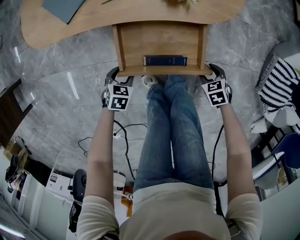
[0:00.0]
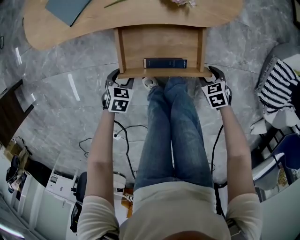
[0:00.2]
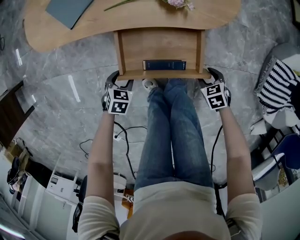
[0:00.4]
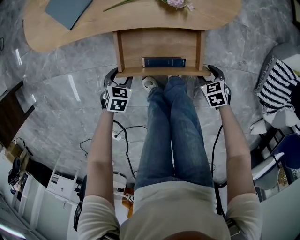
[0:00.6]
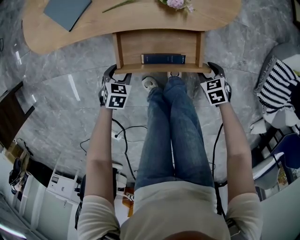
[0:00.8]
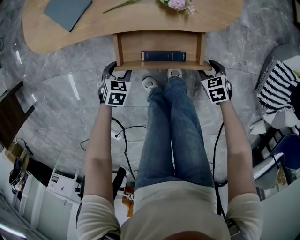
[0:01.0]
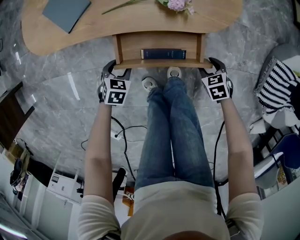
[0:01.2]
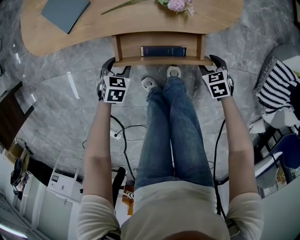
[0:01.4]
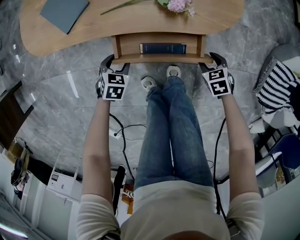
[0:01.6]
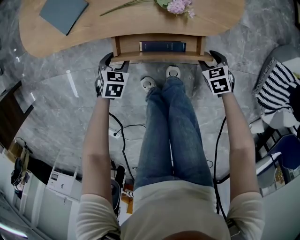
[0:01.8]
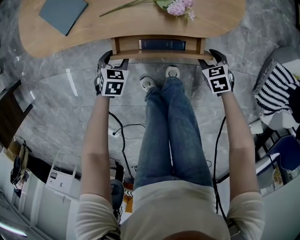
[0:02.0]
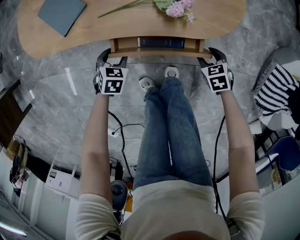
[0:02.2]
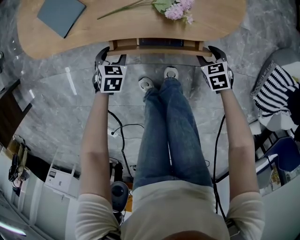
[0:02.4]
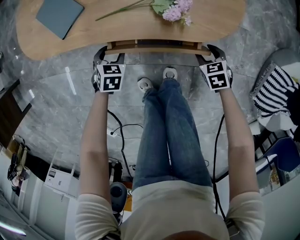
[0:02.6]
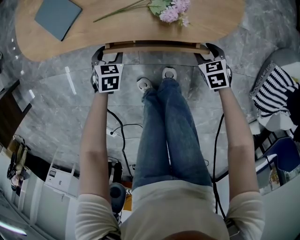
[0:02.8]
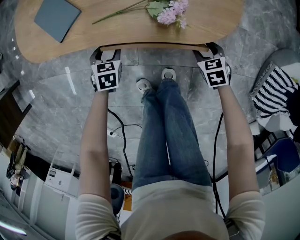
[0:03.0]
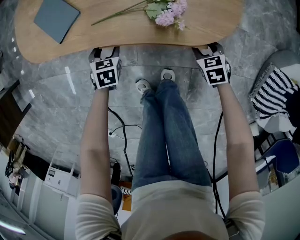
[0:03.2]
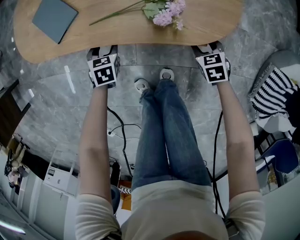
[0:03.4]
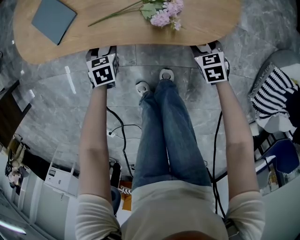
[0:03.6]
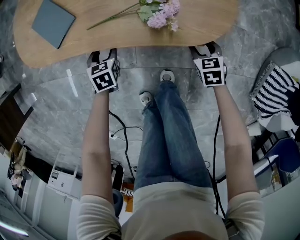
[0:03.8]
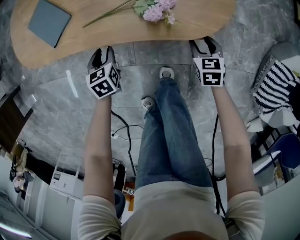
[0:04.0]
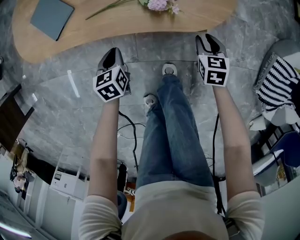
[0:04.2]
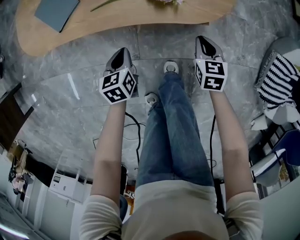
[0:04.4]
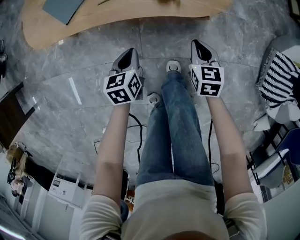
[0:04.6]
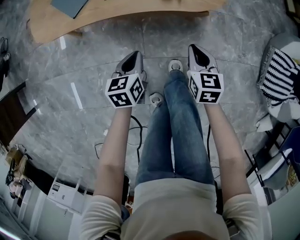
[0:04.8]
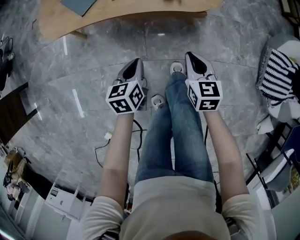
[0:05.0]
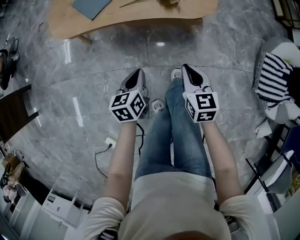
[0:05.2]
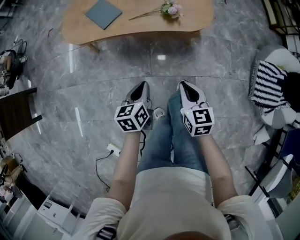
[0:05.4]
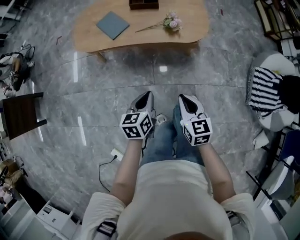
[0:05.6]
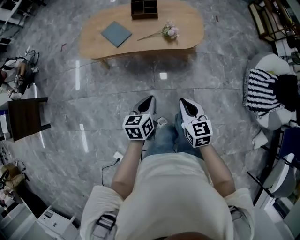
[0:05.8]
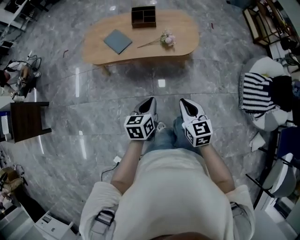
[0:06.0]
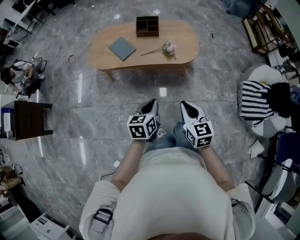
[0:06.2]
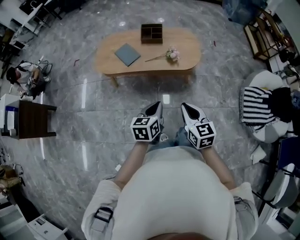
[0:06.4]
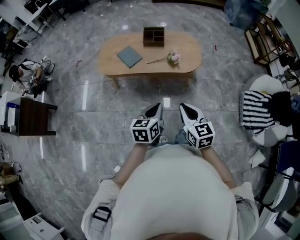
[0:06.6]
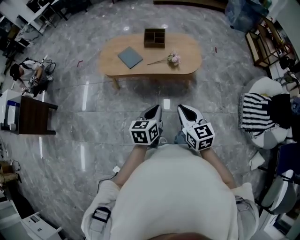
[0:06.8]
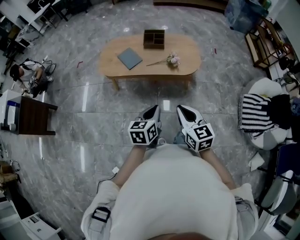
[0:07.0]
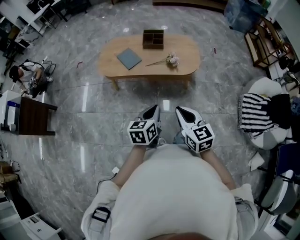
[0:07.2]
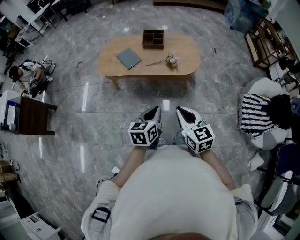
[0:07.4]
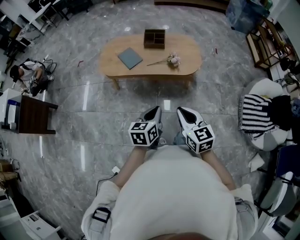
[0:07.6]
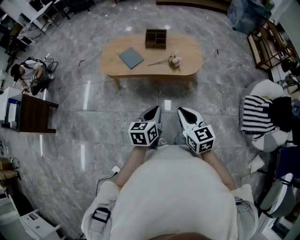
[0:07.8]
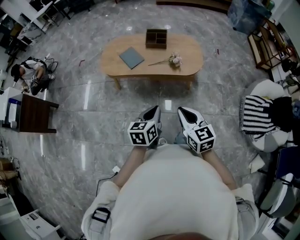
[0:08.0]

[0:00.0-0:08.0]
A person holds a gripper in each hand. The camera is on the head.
0:00.0 to 0:01.6: Both grippers travel together forward, approximately 10 cm.
0:01.6 to 0:03.2: Both grippers move forward, roughly 10 cm. The left gripper turns by some 20 degrees.
0:03.2 to 0:04.8: The left gripper moves some 20 cm, rotates approximately 30 degrees, and closes its fingers, while the right gripper ends up some 20 cm from where it was, swivels about 30 degrees, and closes its fingers.
0:04.8 to 0:06.4: Both grippers move upward and backward, roughly 40 cm. The right gripper rotates roughly 20 degrees.
0:06.4 to 0:08.0: The grippers make only small movements.

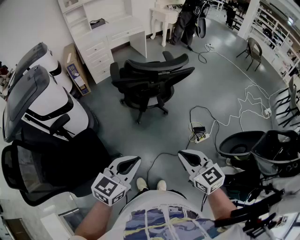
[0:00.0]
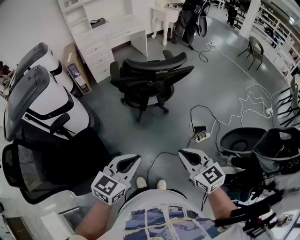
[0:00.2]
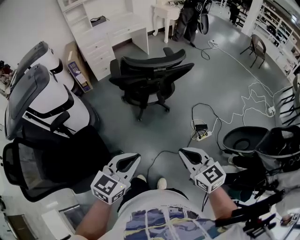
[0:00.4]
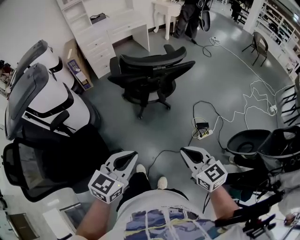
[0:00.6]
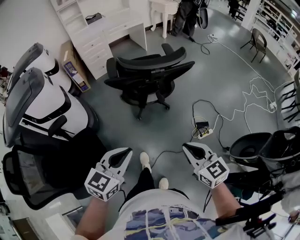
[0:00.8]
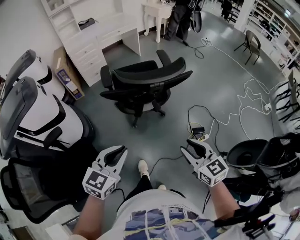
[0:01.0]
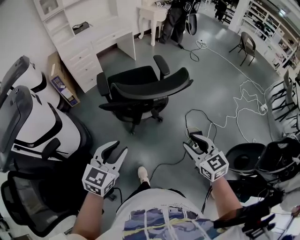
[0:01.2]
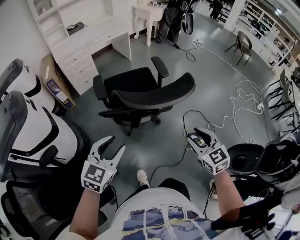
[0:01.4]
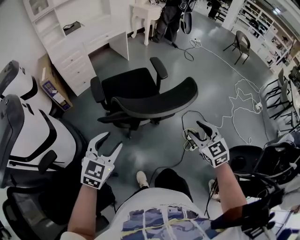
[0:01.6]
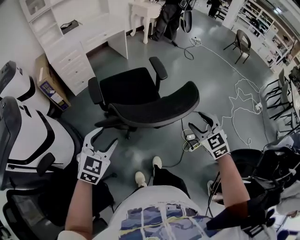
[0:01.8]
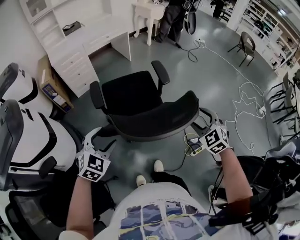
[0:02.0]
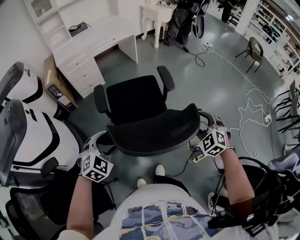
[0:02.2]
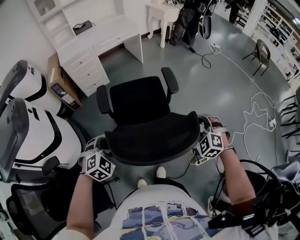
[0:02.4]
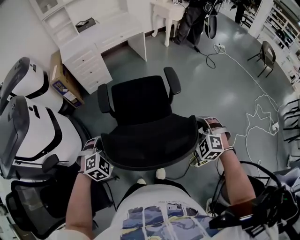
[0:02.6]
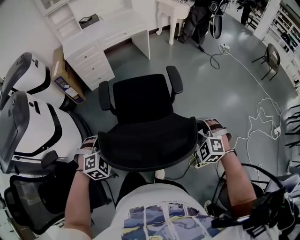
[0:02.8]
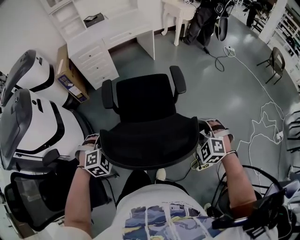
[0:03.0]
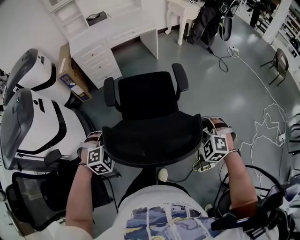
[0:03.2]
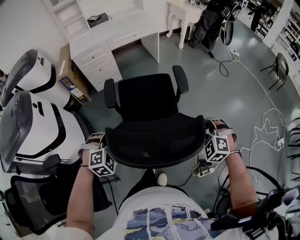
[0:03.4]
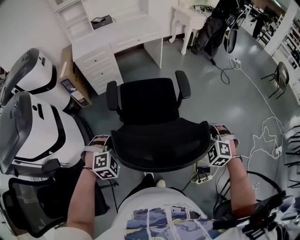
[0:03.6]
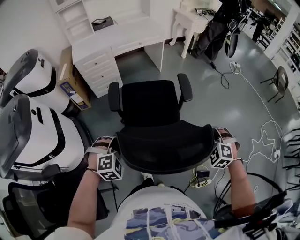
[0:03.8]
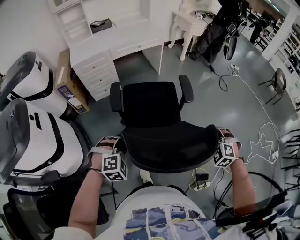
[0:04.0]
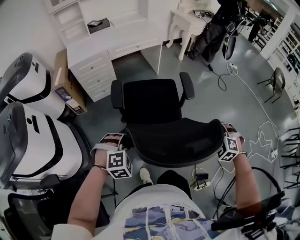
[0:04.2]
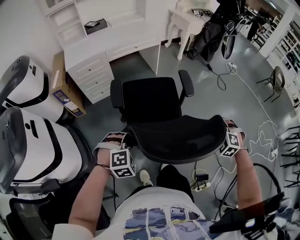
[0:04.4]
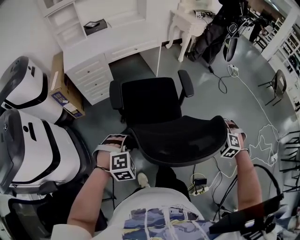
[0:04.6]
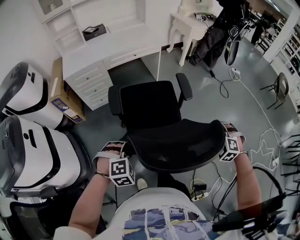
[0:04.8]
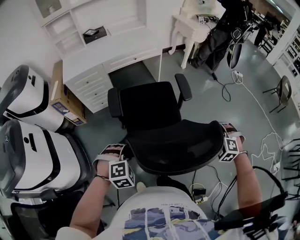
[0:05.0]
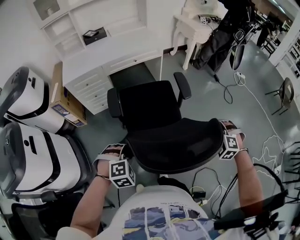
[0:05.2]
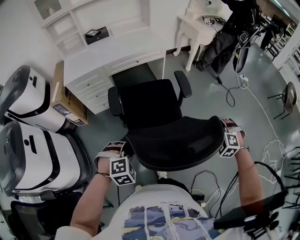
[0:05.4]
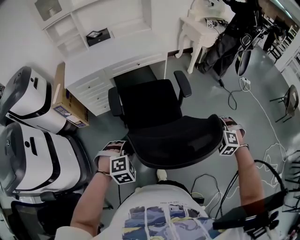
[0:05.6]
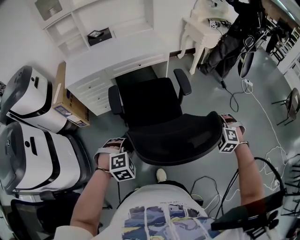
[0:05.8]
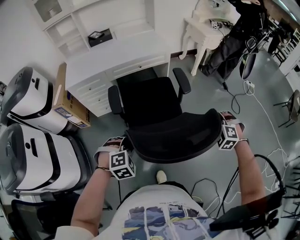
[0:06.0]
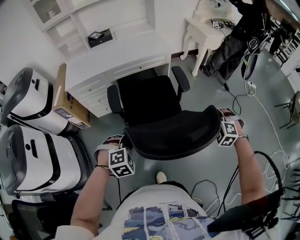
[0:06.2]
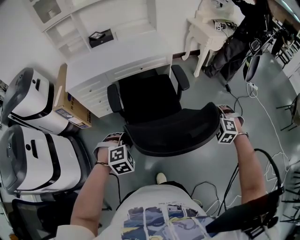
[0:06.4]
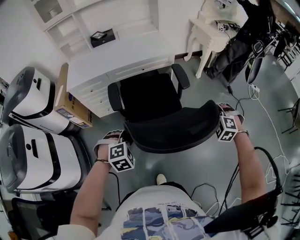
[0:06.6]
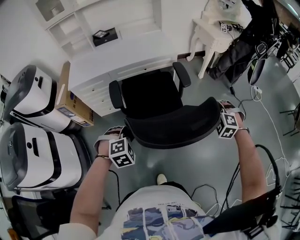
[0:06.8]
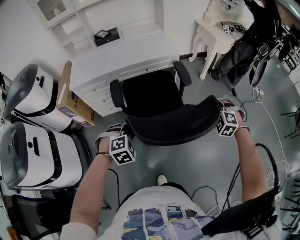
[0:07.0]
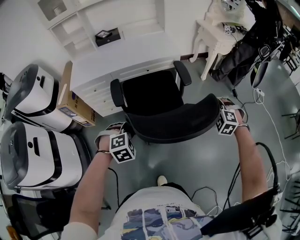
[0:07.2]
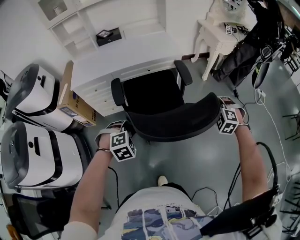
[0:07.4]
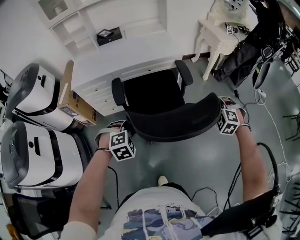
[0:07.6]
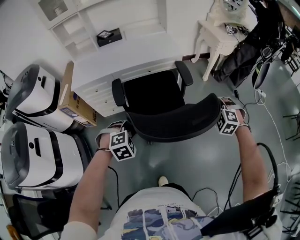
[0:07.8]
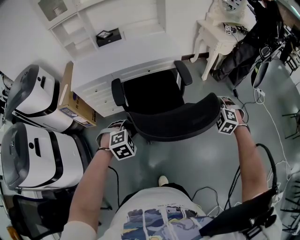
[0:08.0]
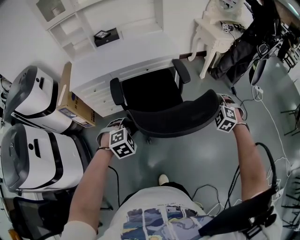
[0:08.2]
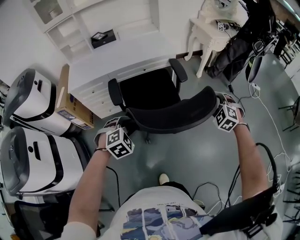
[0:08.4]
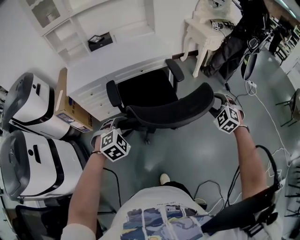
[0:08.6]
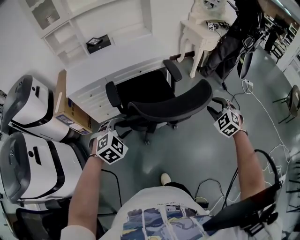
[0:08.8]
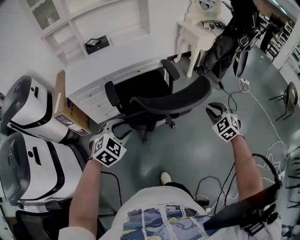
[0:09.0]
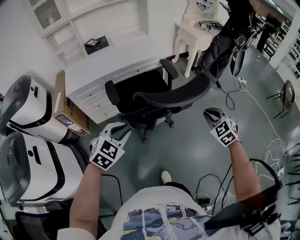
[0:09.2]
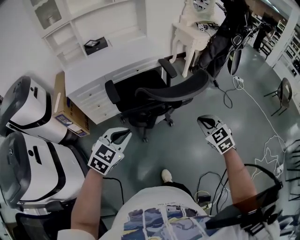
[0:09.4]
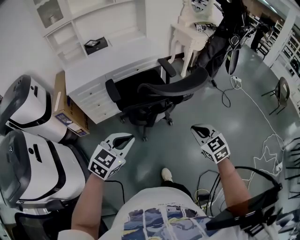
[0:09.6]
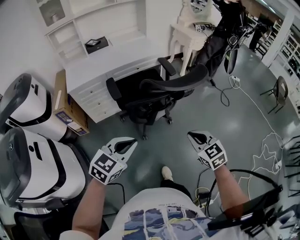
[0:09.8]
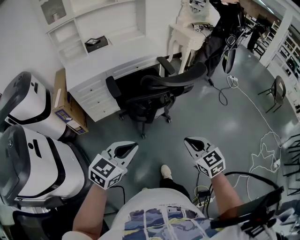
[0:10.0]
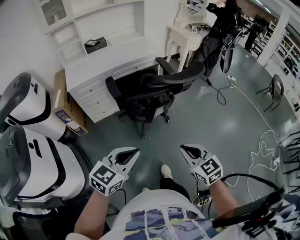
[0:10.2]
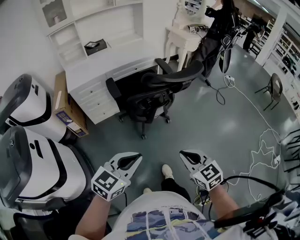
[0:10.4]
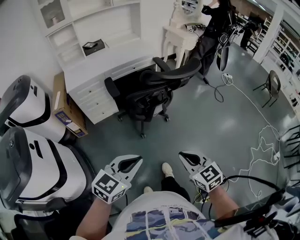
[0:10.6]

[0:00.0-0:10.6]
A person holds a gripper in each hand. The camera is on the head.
0:00.0 to 0:01.6: The grippers both shift forward by approximately 30 cm. The right gripper changes its angle by some 30 degrees, and opens its fingers. The left gripper opens its fingers.
0:01.6 to 0:03.0: The left gripper is displaced forward and downward by roughly 15 cm, and rotates some 50 degrees; the right gripper shifts roughly 20 cm forward, and twists roughly 50 degrees counterclockwise, seen from behind.
0:03.0 to 0:04.6: Both grippers move forward, approximately 25 cm.
0:04.6 to 0:06.0: The grippers both shift forward by roughly 25 cm.
0:06.0 to 0:07.6: Both grippers travel together forward, approximately 15 cm.
0:07.6 to 0:09.0: The right gripper shifts some 15 cm backward and upward, swivels approximately 30 degrees, and closes up, while the left gripper shifts approximately 10 cm upward and backward, swivels roughly 20 degrees, and opens.
0:09.0 to 0:10.6: The right gripper travels backward and to the left by about 40 cm, and swivels about 40 degrees, while the left gripper is displaced backward by roughly 30 cm, turns by some 40 degrees, and closes up.

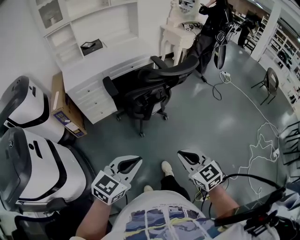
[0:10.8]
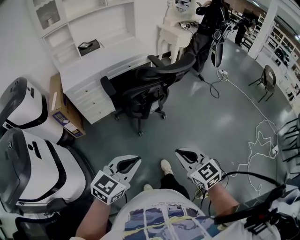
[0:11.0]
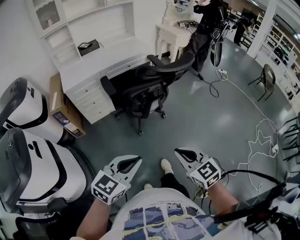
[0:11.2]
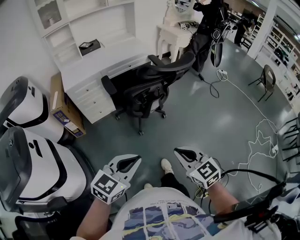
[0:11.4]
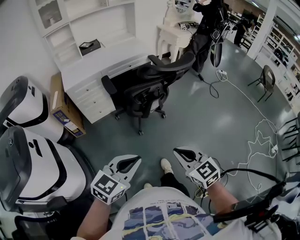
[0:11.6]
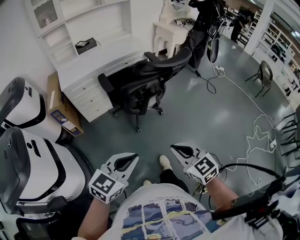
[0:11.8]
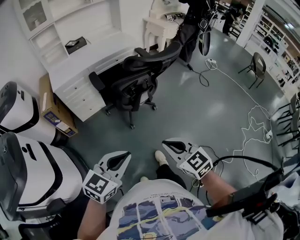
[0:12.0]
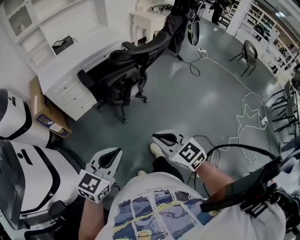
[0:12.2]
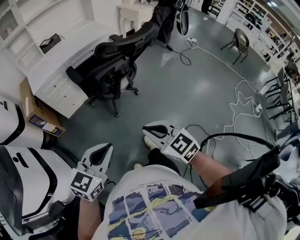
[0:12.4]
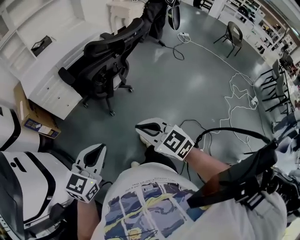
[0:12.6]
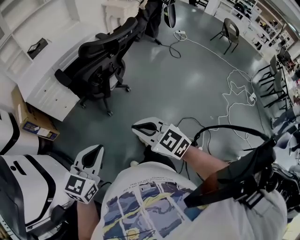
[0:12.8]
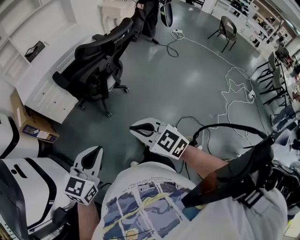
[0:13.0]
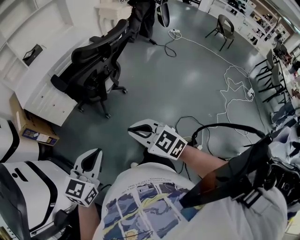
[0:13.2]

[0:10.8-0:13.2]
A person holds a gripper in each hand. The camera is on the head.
0:10.8 to 0:12.0: There are only small adjustments of the grippers.
0:12.0 to 0:13.2: Neither gripper changes place.

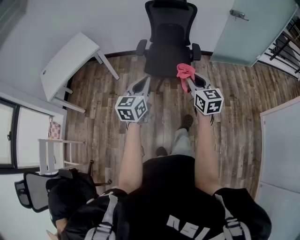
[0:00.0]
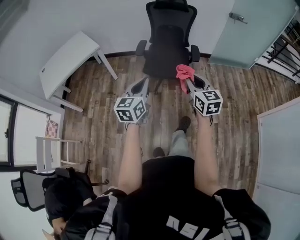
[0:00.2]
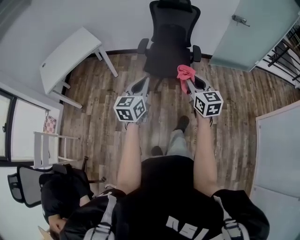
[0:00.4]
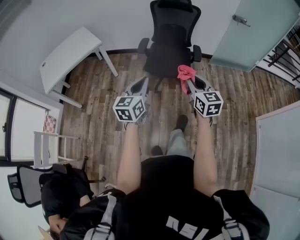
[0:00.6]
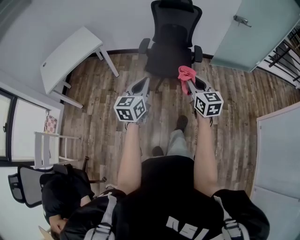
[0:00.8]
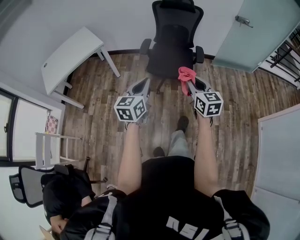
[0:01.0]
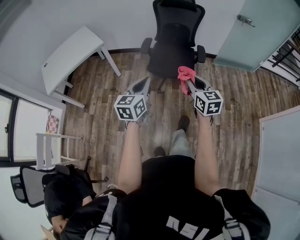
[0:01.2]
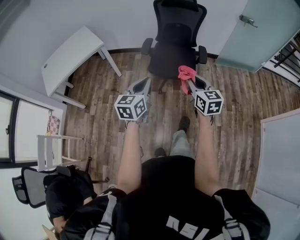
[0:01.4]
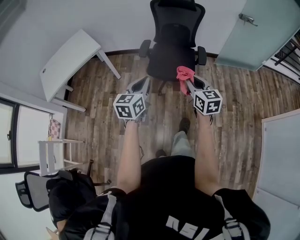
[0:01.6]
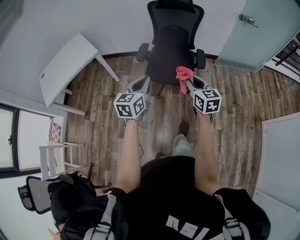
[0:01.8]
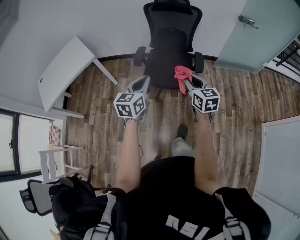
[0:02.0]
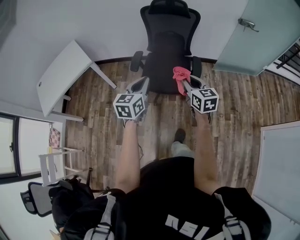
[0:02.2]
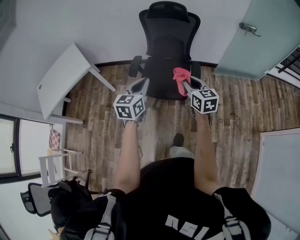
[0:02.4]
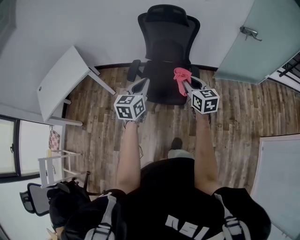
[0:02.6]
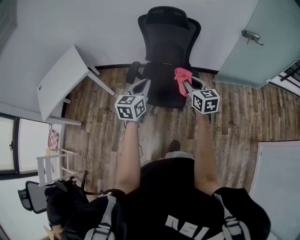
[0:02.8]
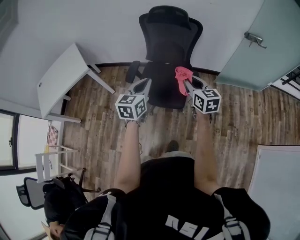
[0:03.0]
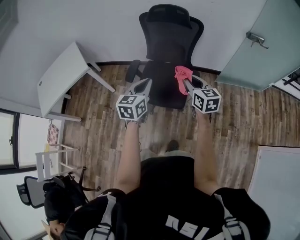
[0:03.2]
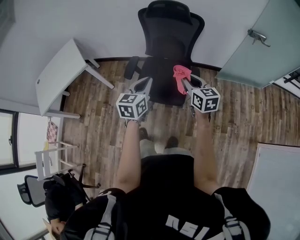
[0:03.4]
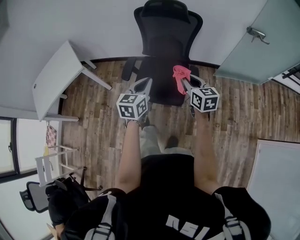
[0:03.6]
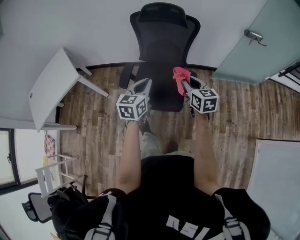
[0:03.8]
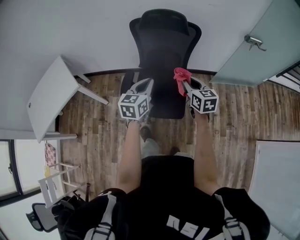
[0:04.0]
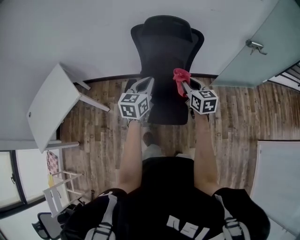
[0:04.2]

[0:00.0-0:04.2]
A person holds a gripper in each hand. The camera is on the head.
0:00.0 to 0:01.4: The right gripper shifts by about 5 cm.
0:01.4 to 0:02.8: The two grippers go about 35 cm forward and to the right.
0:02.8 to 0:04.2: Both grippers travel together forward, roughly 20 cm.
